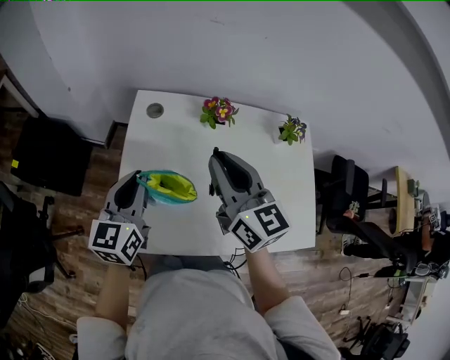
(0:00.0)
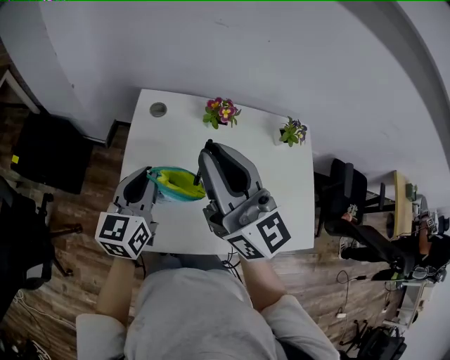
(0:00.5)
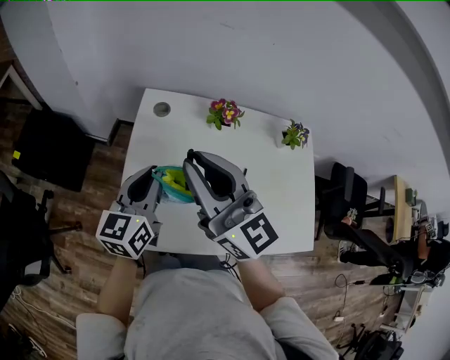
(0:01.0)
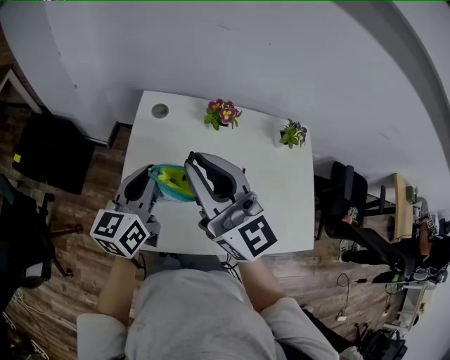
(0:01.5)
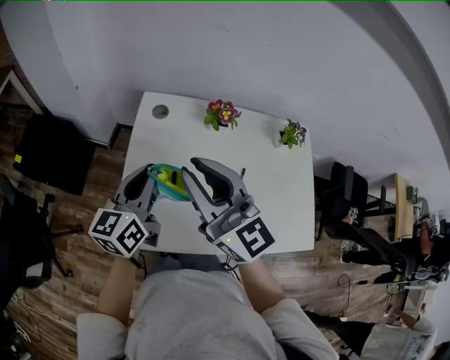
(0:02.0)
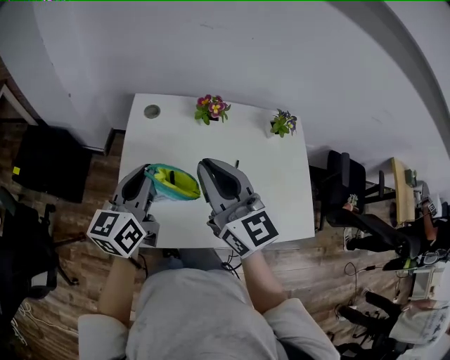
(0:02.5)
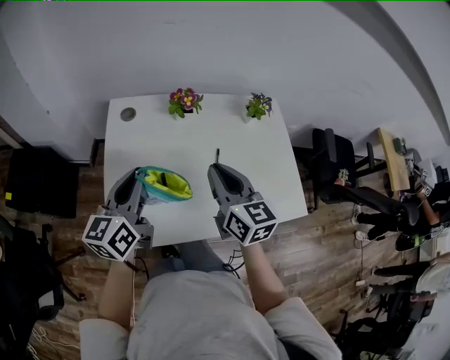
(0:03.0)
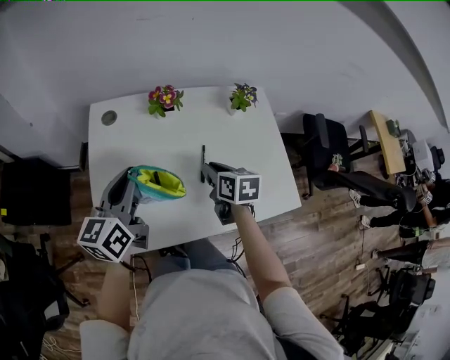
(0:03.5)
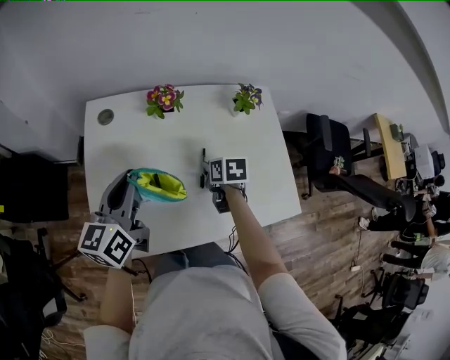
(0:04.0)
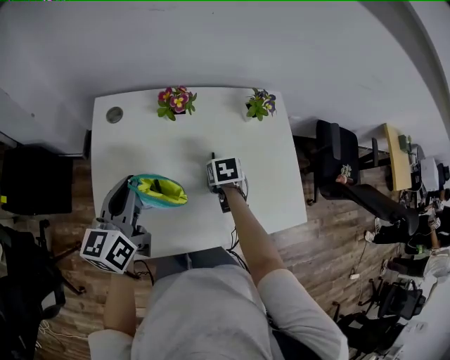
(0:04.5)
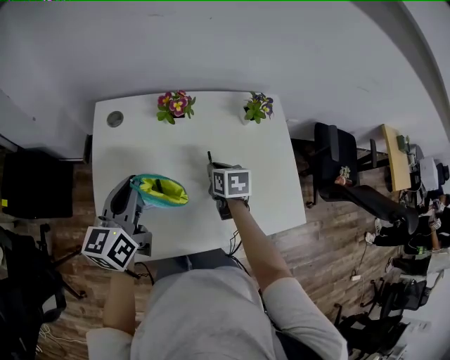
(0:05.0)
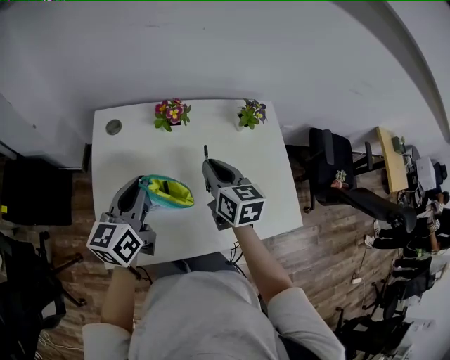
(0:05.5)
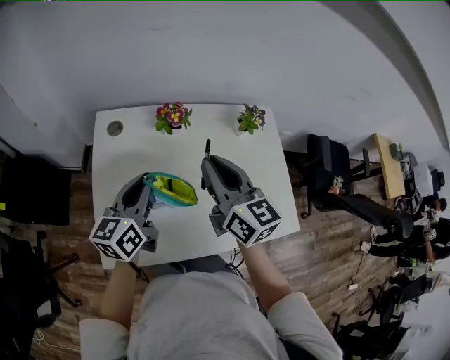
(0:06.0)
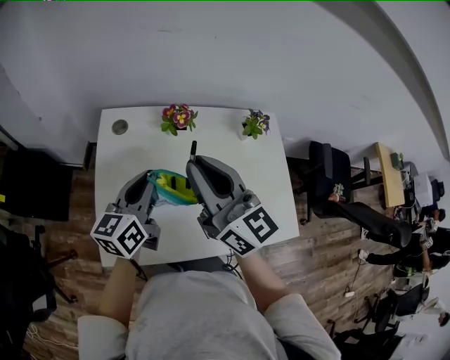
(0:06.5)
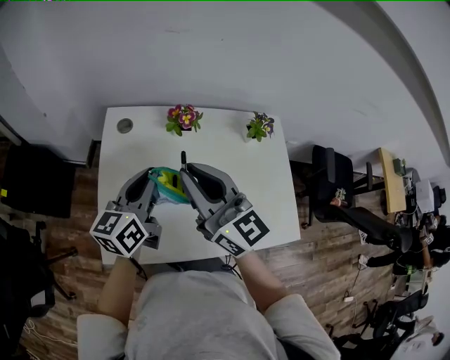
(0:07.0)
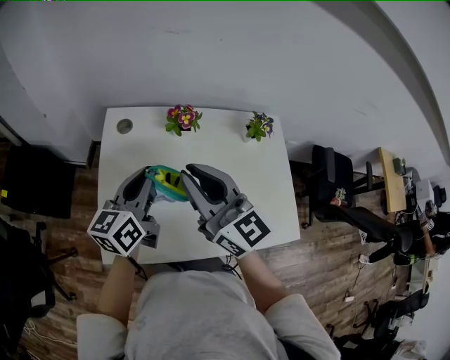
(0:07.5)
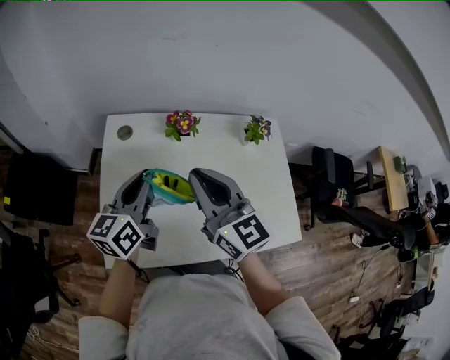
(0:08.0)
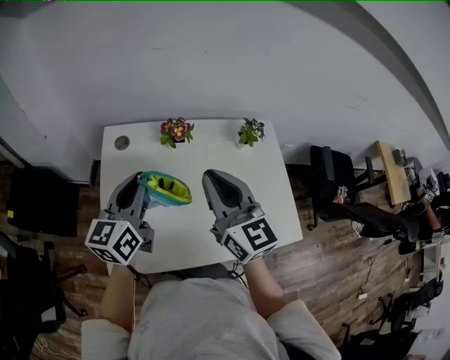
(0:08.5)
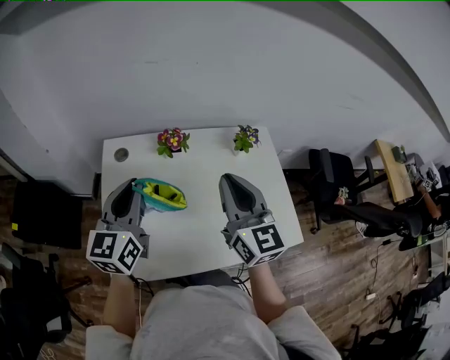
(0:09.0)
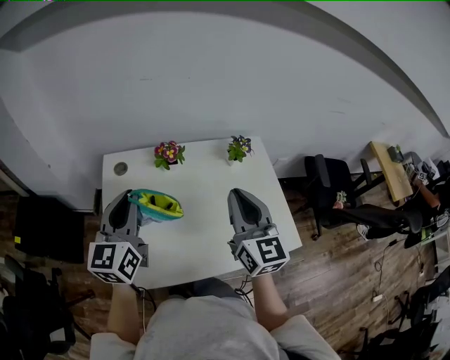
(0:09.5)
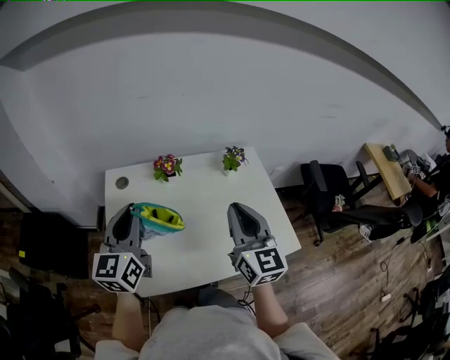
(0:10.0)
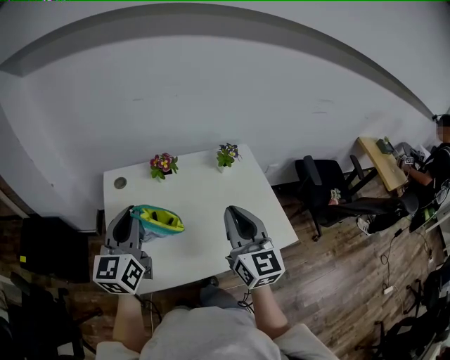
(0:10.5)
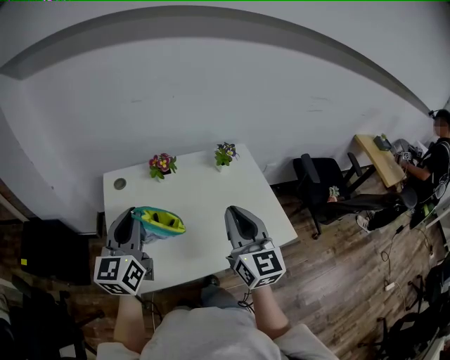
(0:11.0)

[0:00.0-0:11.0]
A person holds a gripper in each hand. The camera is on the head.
0:00.0 to 0:02.0: The right gripper heads to the left and upward, covering roughly 10 cm.
0:02.0 to 0:03.5: The right gripper moves downward and to the right, roughly 30 cm, and points its fingers about 50 degrees further downward. The left gripper is displaced to the right by approximately 5 cm.
0:03.5 to 0:05.5: The right gripper heads upward and forward, covering approximately 10 cm.
0:05.5 to 0:07.5: The right gripper goes about 20 cm upward and to the left, and rotates some 40 degrees.
0:07.5 to 0:09.0: The right gripper moves to the right, some 10 cm, and rotates about 30 degrees, while the left gripper heads upward, covering some 5 cm, and swivels approximately 20 degrees.
0:09.0 to 0:11.0: Both grippers move backward, some 10 cm.

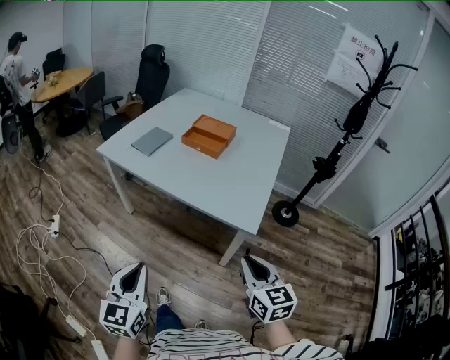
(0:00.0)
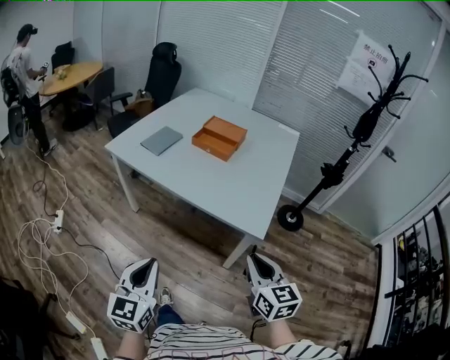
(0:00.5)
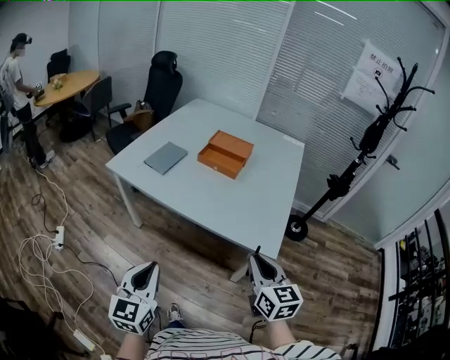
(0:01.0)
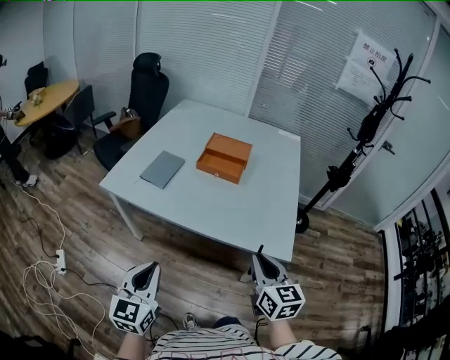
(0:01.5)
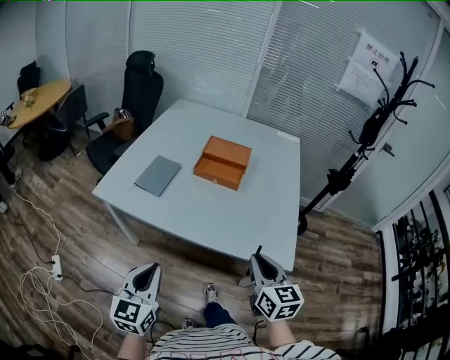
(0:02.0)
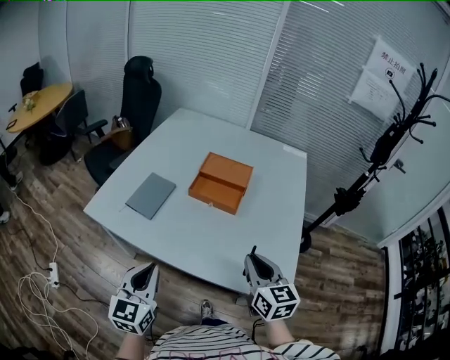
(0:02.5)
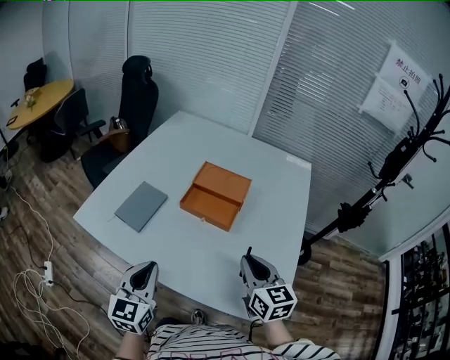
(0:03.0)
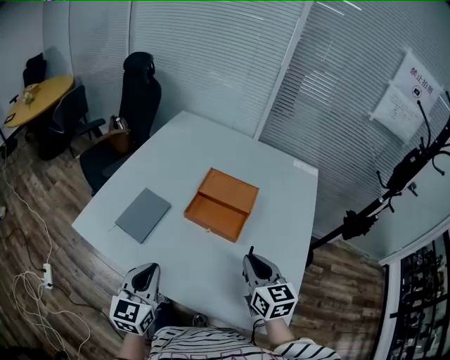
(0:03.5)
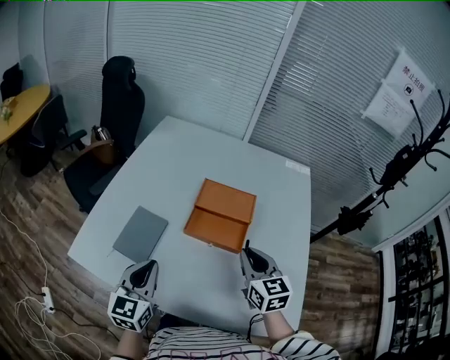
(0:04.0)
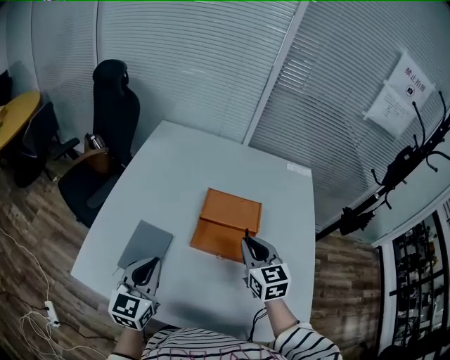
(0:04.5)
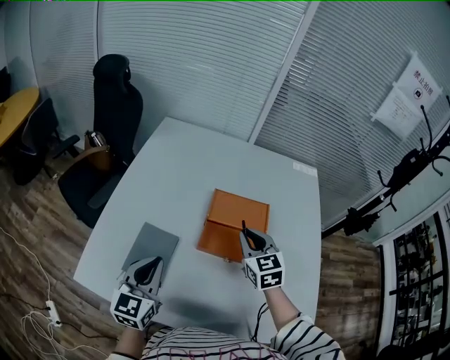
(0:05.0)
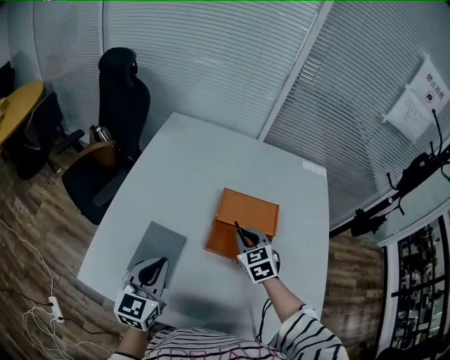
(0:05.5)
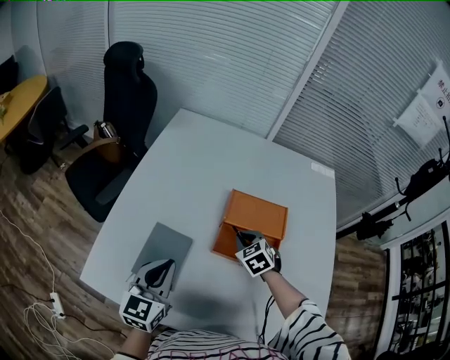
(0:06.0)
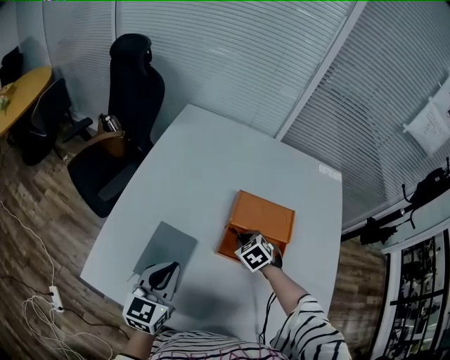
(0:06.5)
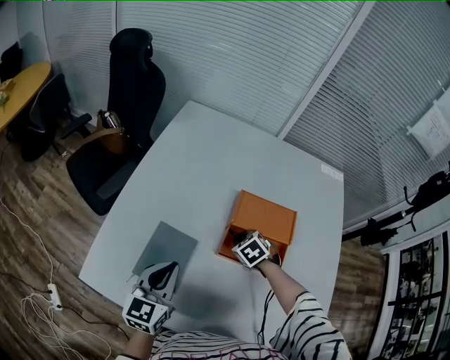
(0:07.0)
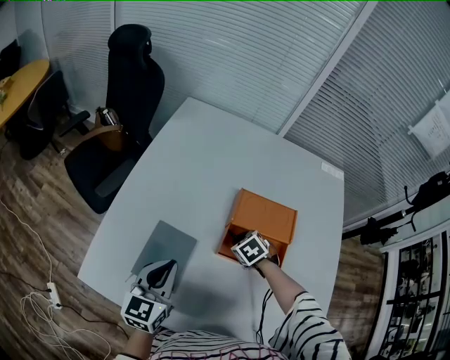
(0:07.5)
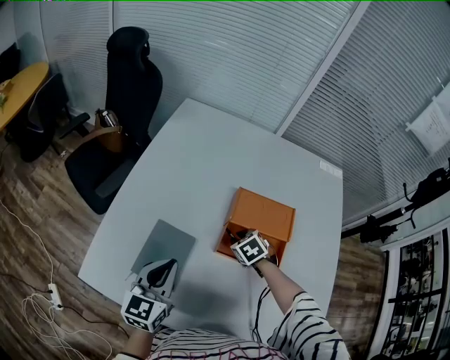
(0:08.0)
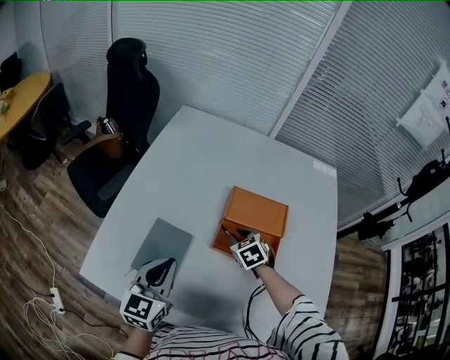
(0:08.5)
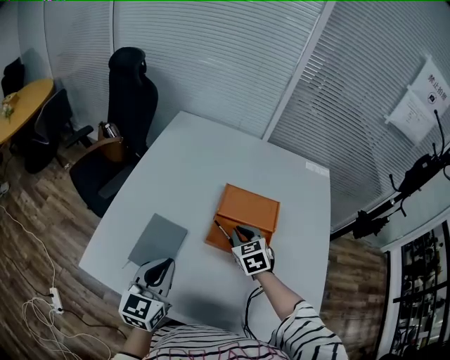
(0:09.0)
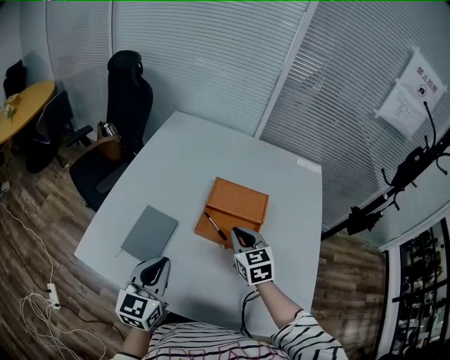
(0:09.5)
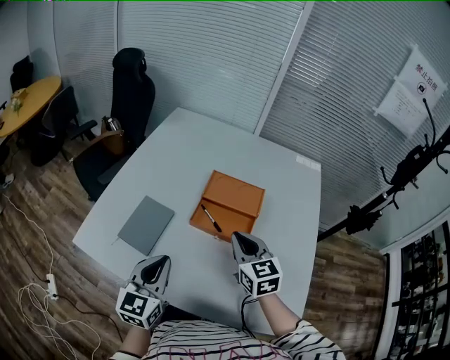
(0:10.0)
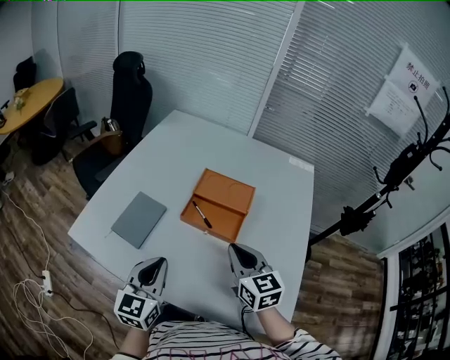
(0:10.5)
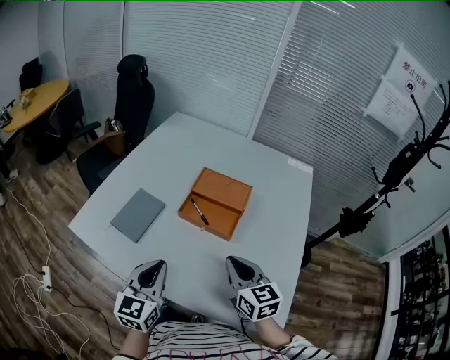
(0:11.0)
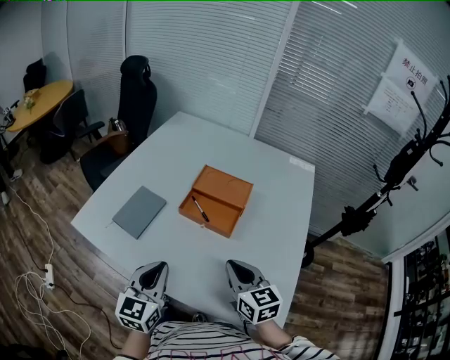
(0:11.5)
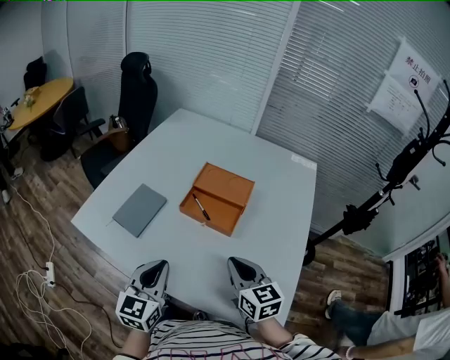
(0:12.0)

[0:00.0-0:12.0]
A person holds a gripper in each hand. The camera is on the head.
0:00.0 to 0:02.0: The grippers both shift forward and to the left by some 25 cm.
0:02.0 to 0:04.0: The two grippers go some 35 cm forward.
0:04.0 to 0:06.0: The left gripper moves forward and to the left, roughly 15 cm. The right gripper shifts roughly 25 cm forward, downward and to the left, and angles its fingers downward, by some 30 degrees.
0:06.0 to 0:08.0: The right gripper travels downward by roughly 5 cm.
0:08.0 to 0:10.0: The left gripper travels backward, to the right and upward by approximately 20 cm, while the right gripper is displaced upward and backward by about 25 cm, and tilts its fingers roughly 40 degrees upward.
0:10.0 to 0:12.0: The left gripper travels backward and to the right by roughly 10 cm. Meanwhile the right gripper moves backward, approximately 15 cm.

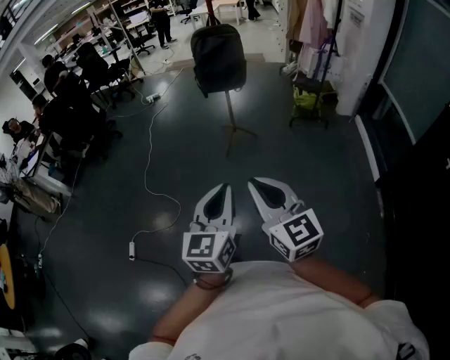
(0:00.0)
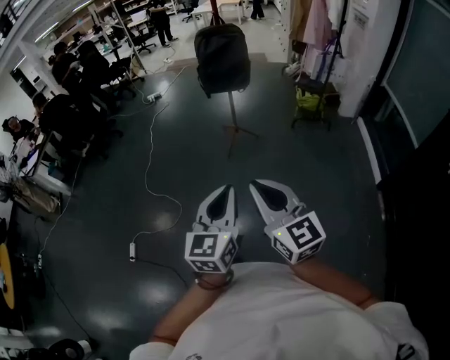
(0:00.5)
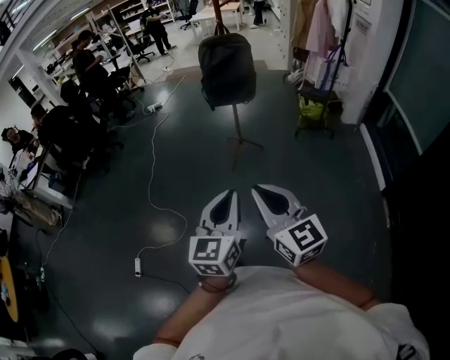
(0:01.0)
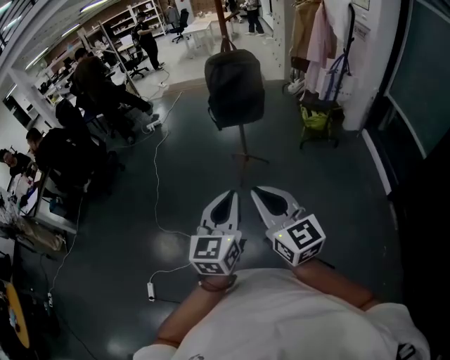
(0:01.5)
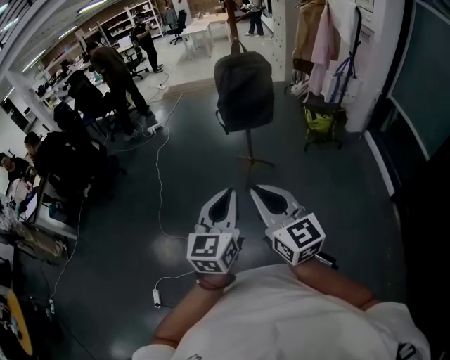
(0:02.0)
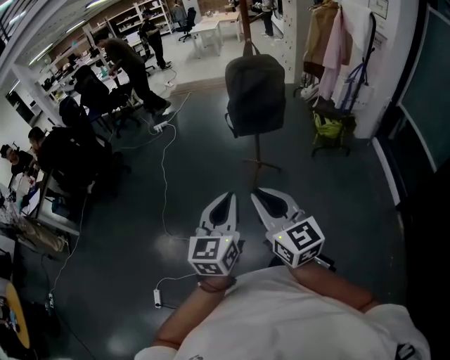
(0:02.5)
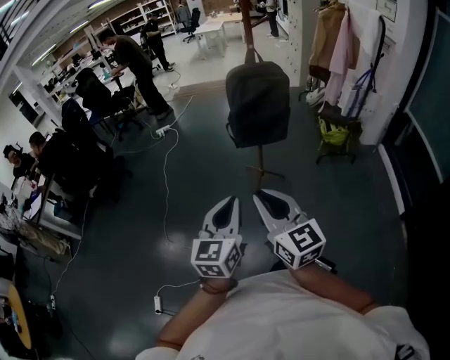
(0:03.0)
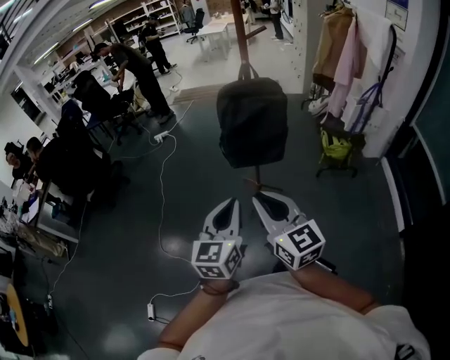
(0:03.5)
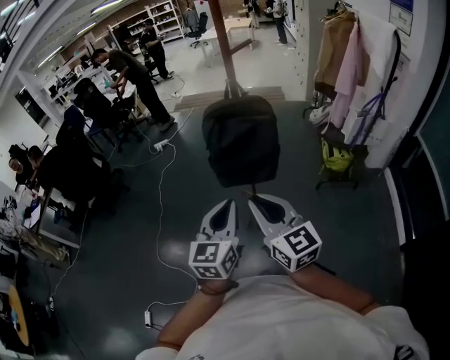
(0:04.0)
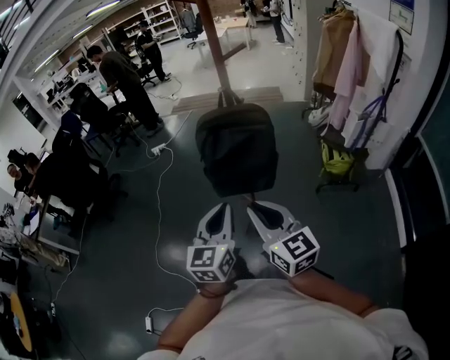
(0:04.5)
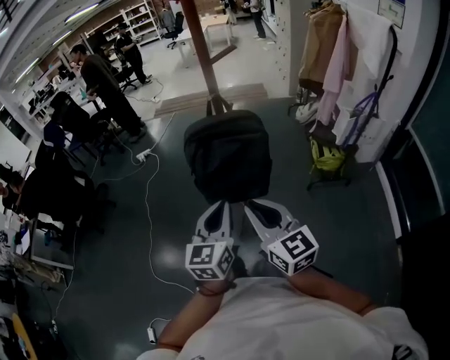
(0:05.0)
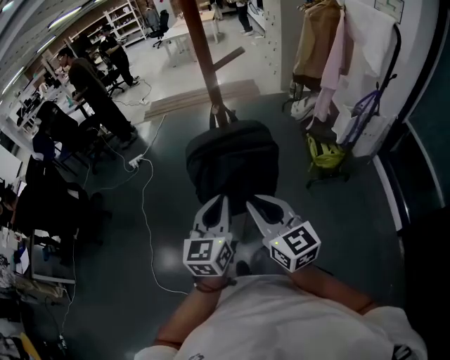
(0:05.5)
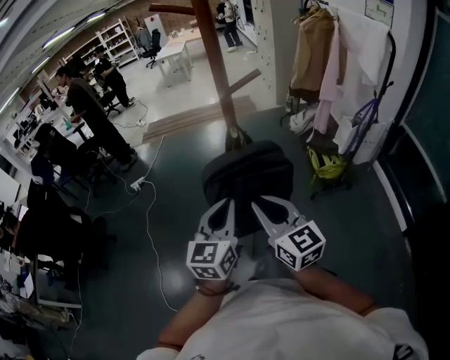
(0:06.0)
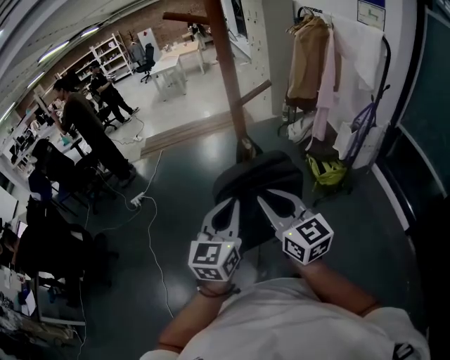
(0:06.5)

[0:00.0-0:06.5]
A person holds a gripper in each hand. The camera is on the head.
0:00.0 to 0:02.0: The grippers both shift forward and to the left by roughly 35 cm.
0:02.0 to 0:04.5: Both grippers are carried forward and to the right, some 40 cm.
0:04.5 to 0:06.5: Both grippers travel together forward, about 25 cm. The left gripper rotates roughly 20 degrees.
